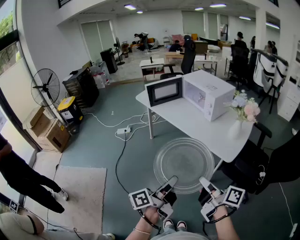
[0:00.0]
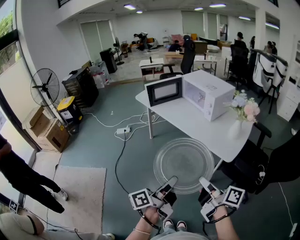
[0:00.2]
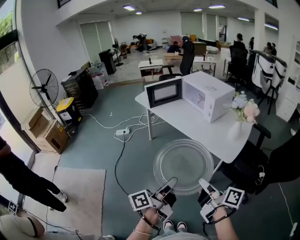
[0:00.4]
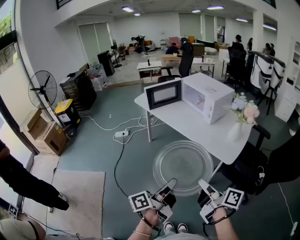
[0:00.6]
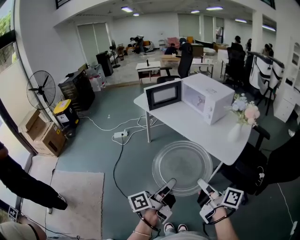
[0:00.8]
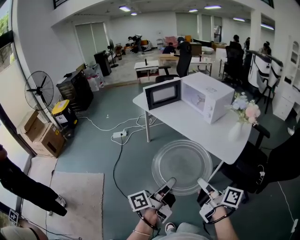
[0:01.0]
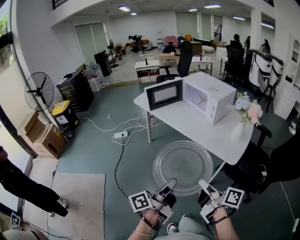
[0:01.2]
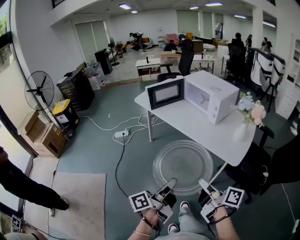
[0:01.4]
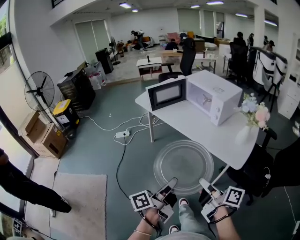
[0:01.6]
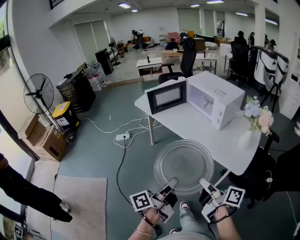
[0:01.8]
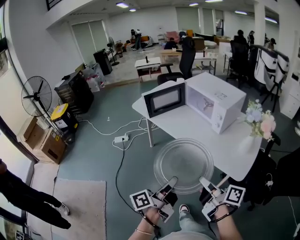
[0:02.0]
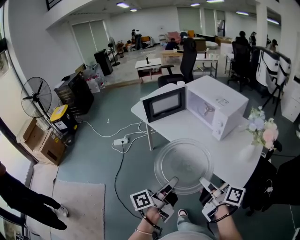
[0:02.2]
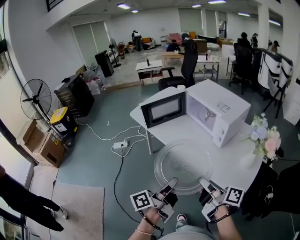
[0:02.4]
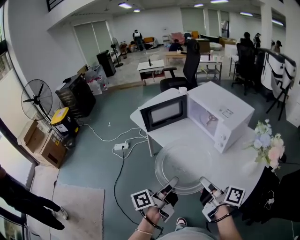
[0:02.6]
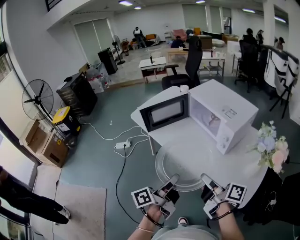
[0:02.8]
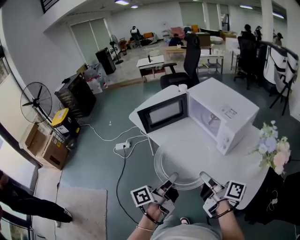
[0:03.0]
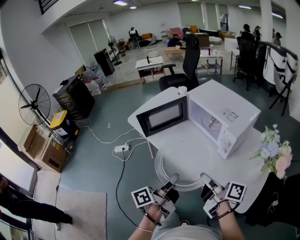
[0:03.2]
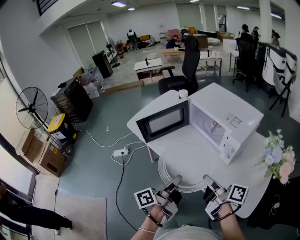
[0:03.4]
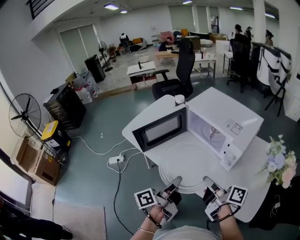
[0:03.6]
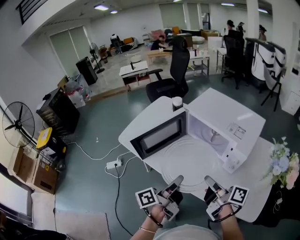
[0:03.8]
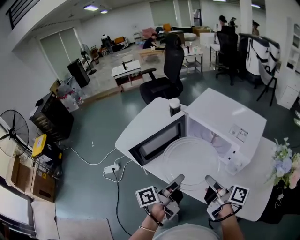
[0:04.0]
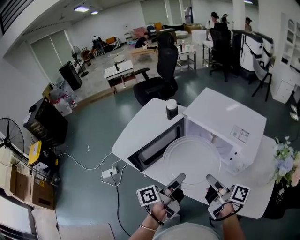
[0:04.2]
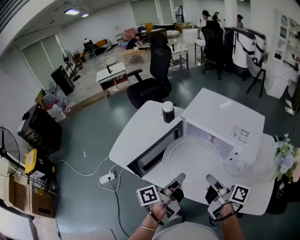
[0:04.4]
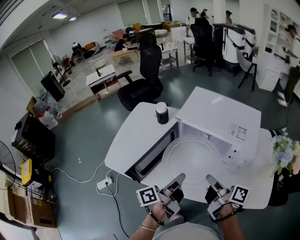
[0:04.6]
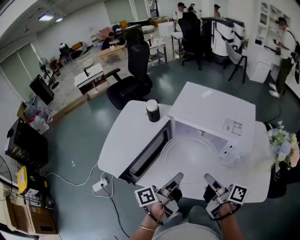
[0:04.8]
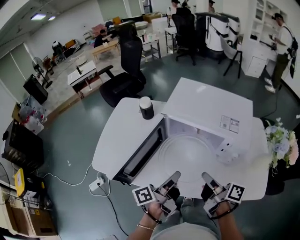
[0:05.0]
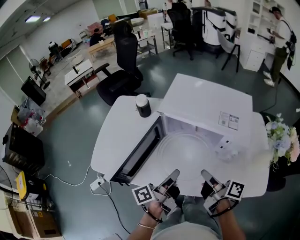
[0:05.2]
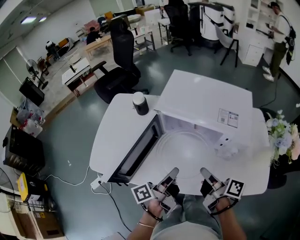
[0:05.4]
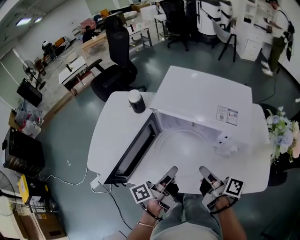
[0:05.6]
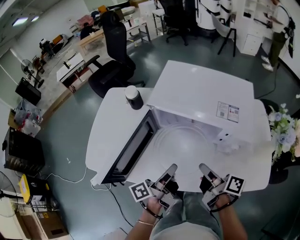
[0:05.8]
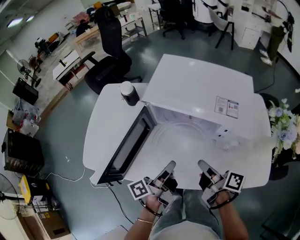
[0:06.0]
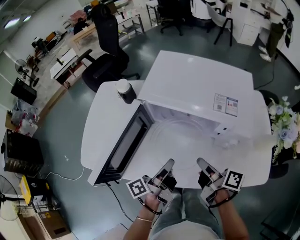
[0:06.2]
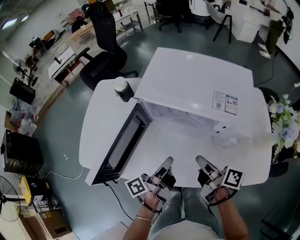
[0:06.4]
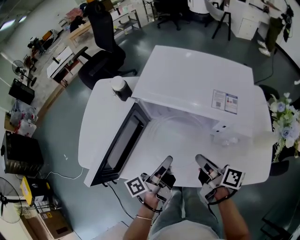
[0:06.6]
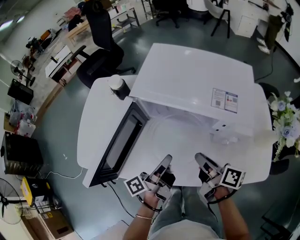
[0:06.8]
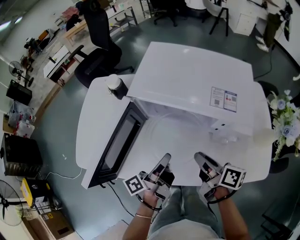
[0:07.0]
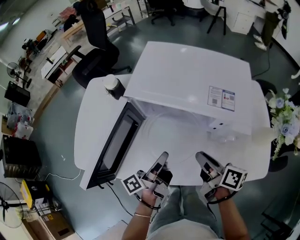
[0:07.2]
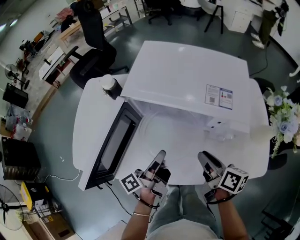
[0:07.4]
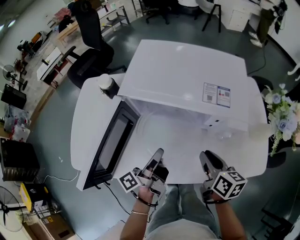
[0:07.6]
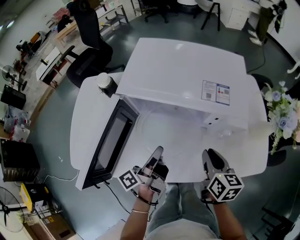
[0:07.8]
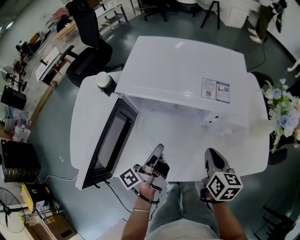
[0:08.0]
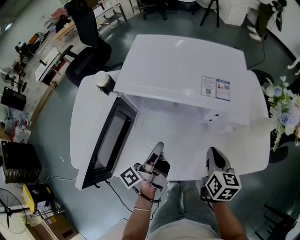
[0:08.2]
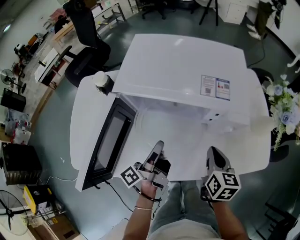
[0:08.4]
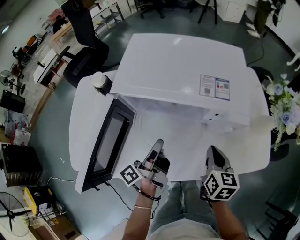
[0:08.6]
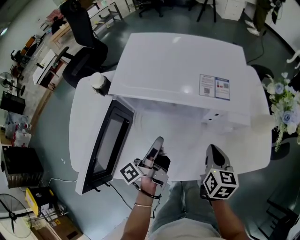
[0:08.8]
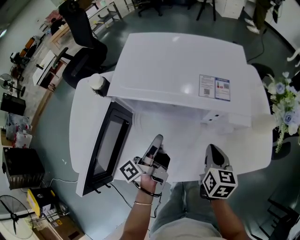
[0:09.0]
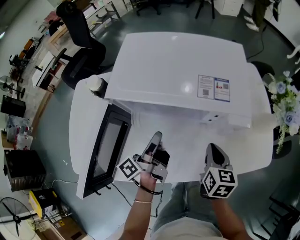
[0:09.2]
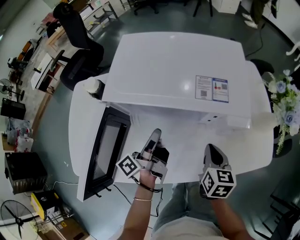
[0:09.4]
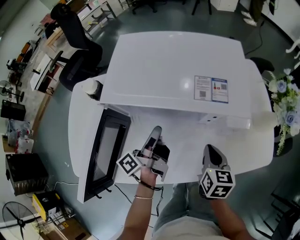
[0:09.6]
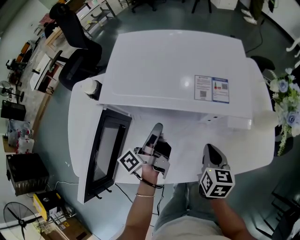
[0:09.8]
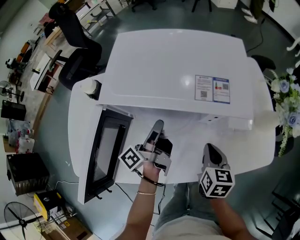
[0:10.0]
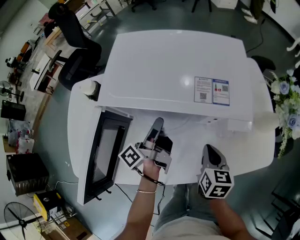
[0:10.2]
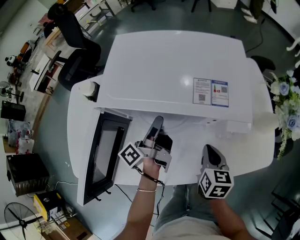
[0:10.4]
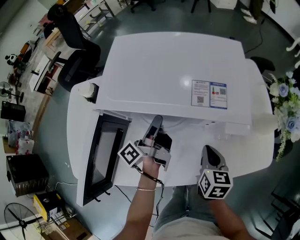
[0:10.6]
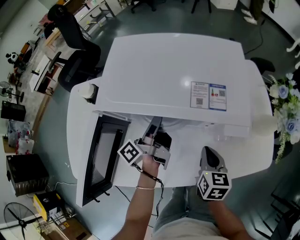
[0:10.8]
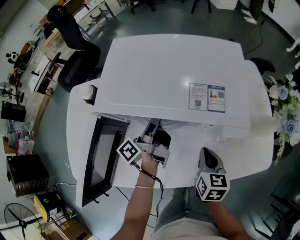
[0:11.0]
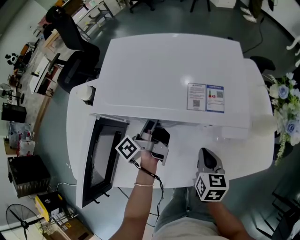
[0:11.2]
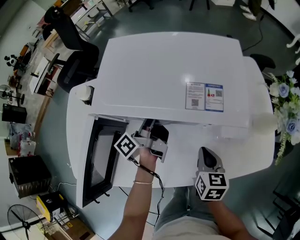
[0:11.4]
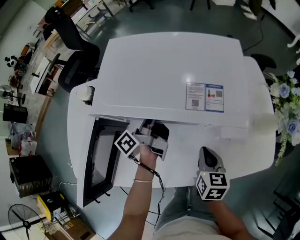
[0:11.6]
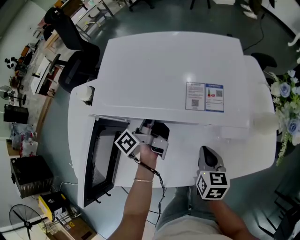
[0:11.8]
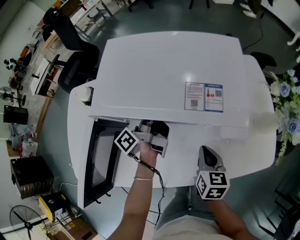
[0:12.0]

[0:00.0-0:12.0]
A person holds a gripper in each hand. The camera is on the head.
0:00.0 to 0:01.6: The right gripper changes place by some 10 cm.
0:01.6 to 0:03.0: The right gripper moves some 30 cm.
0:03.0 to 0:04.4: The right gripper changes place by some 25 cm, and rotates some 20 degrees.
0:04.4 to 0:06.0: The right gripper is displaced downward by about 5 cm.
0:06.0 to 0:07.6: The right gripper changes place by approximately 5 cm, and rotates about 30 degrees.
0:07.6 to 0:09.0: The right gripper swivels some 20 degrees, and closes its fingers.

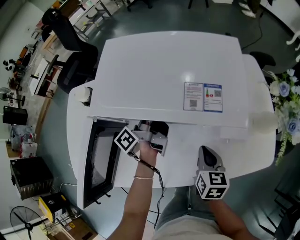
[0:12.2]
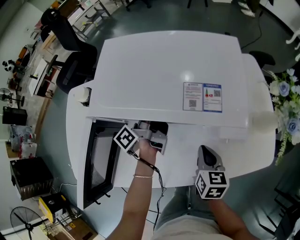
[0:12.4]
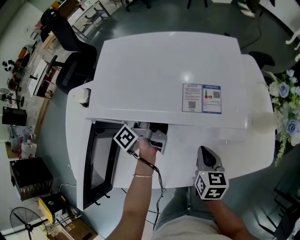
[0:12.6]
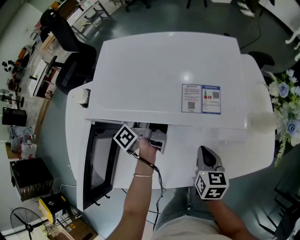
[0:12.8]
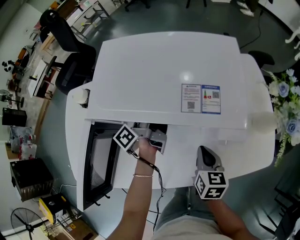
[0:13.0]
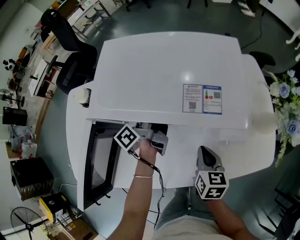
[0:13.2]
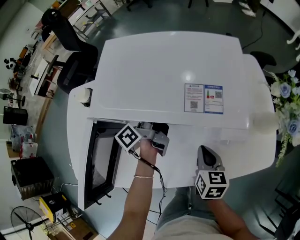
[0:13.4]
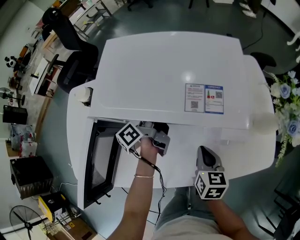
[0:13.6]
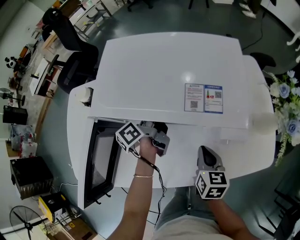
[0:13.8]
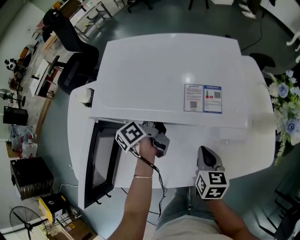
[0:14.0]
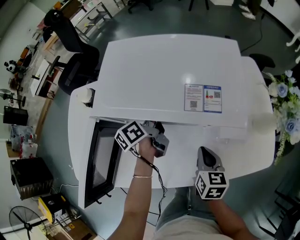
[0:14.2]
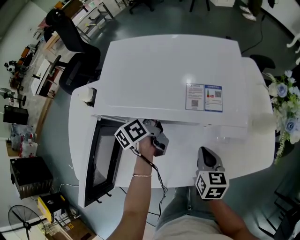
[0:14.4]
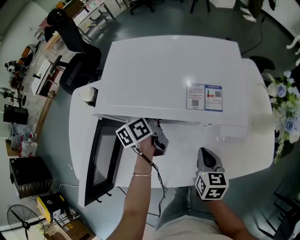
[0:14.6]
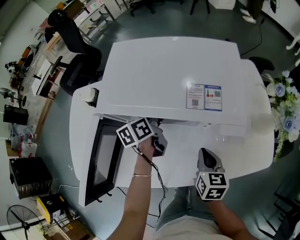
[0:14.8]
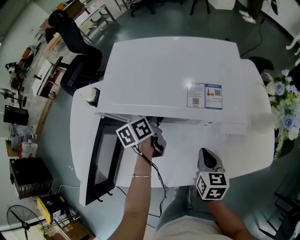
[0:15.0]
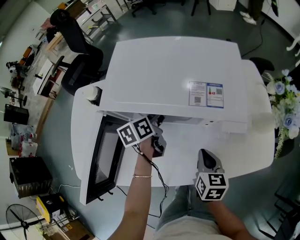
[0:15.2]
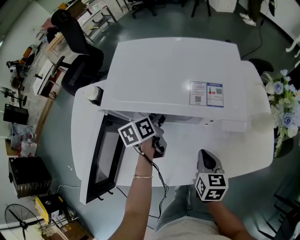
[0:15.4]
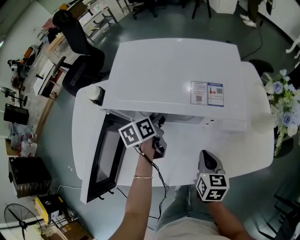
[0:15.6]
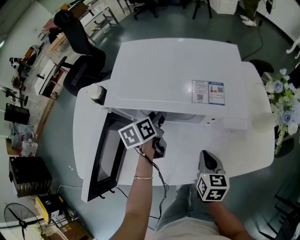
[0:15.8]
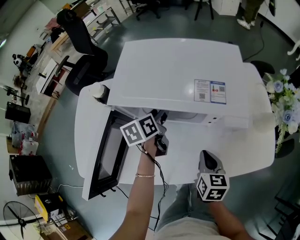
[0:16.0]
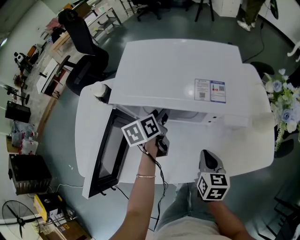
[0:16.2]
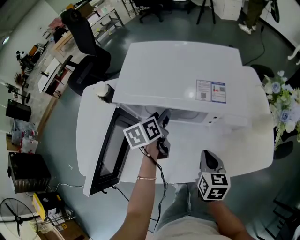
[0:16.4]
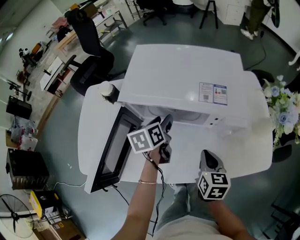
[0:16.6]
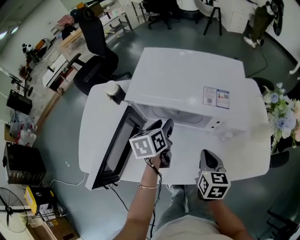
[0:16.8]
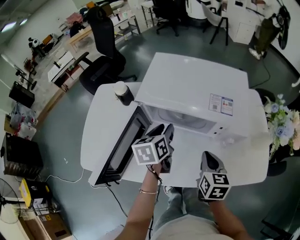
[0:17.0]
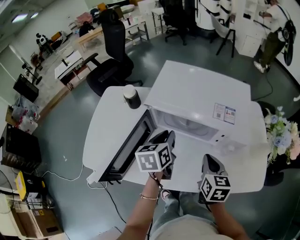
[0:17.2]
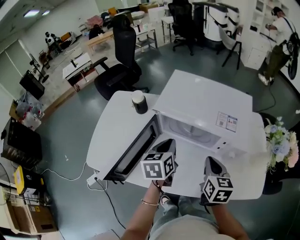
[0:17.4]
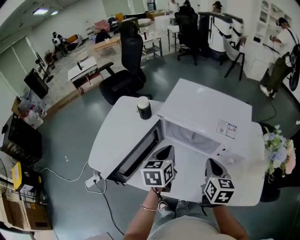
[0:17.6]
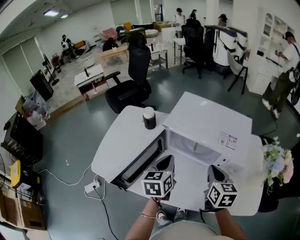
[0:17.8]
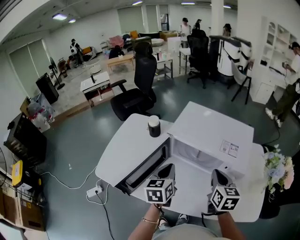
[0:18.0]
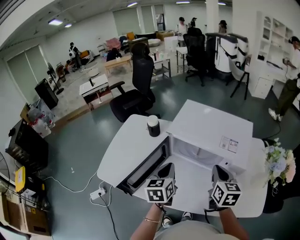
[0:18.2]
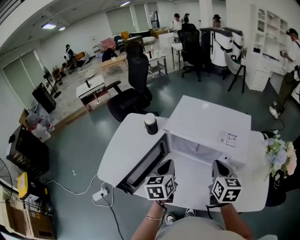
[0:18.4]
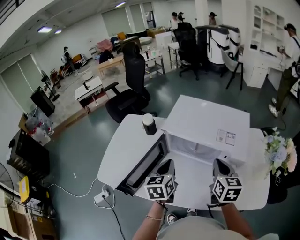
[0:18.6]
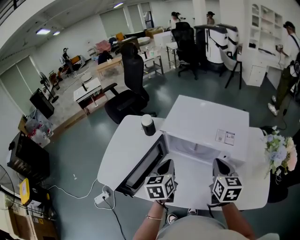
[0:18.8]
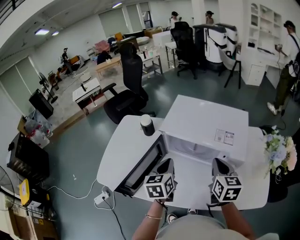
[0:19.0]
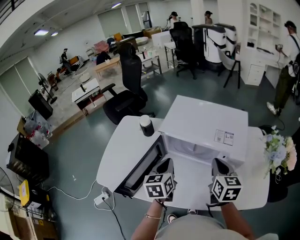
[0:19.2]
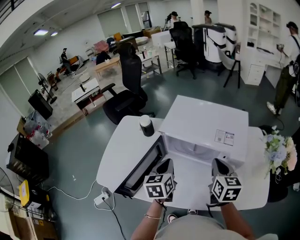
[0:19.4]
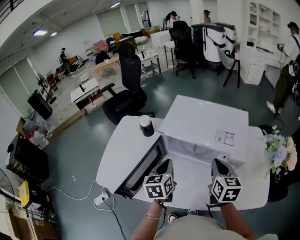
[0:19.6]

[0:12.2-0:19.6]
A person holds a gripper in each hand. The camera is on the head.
0:16.6 to 0:18.2: The right gripper travels upward by about 15 cm, and changes its angle by about 20 degrees.

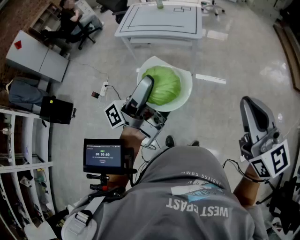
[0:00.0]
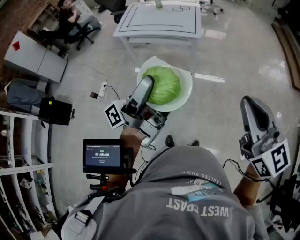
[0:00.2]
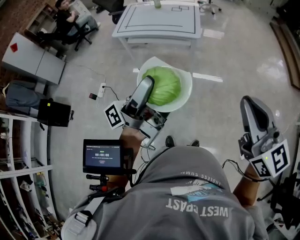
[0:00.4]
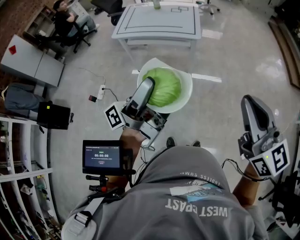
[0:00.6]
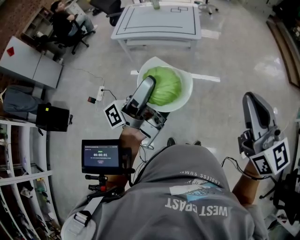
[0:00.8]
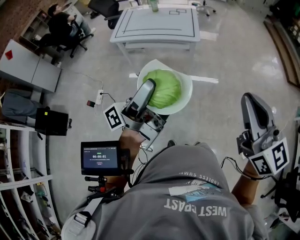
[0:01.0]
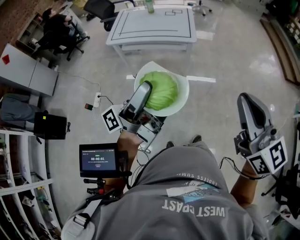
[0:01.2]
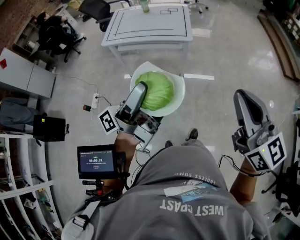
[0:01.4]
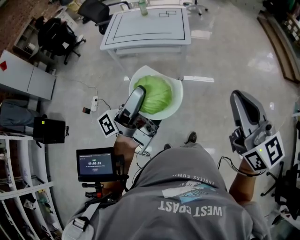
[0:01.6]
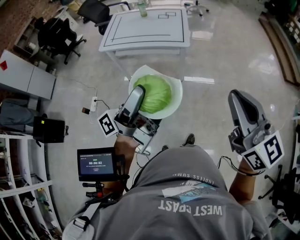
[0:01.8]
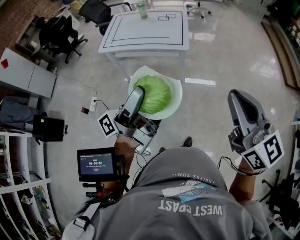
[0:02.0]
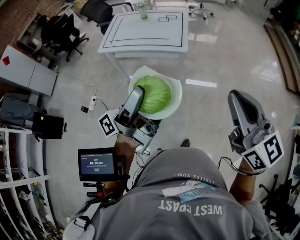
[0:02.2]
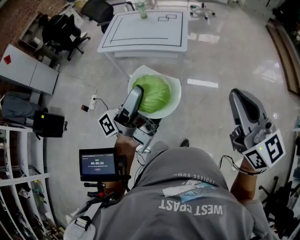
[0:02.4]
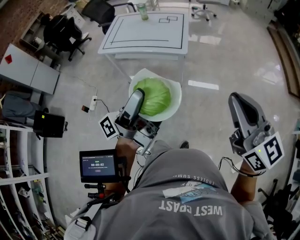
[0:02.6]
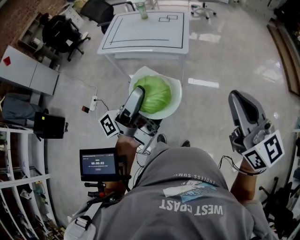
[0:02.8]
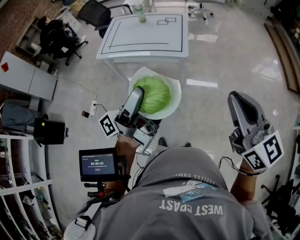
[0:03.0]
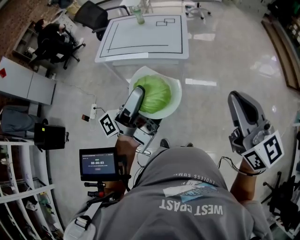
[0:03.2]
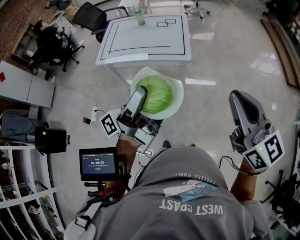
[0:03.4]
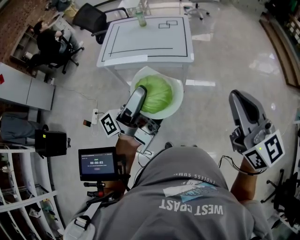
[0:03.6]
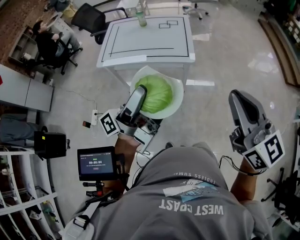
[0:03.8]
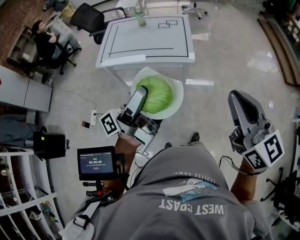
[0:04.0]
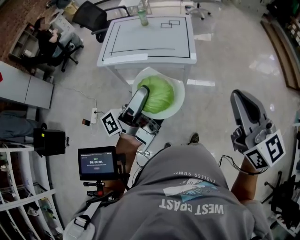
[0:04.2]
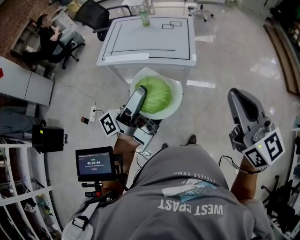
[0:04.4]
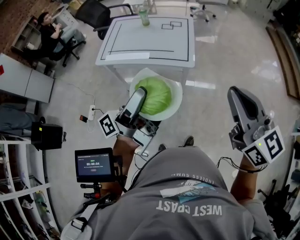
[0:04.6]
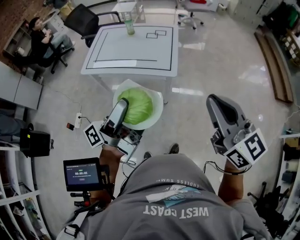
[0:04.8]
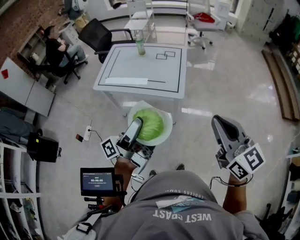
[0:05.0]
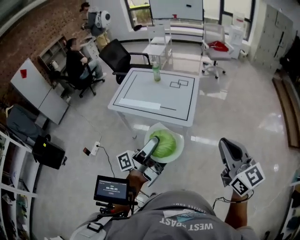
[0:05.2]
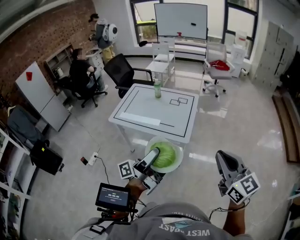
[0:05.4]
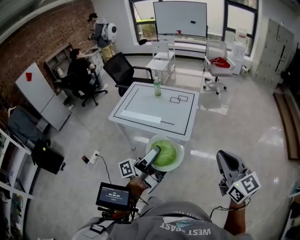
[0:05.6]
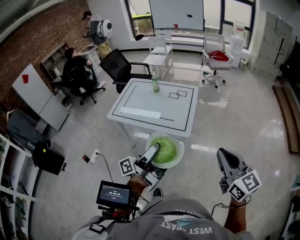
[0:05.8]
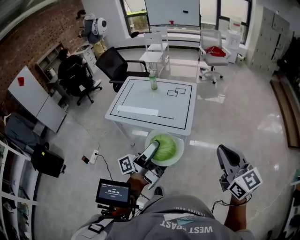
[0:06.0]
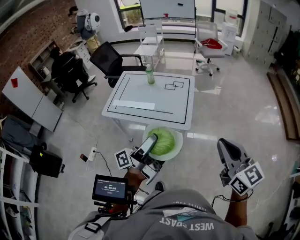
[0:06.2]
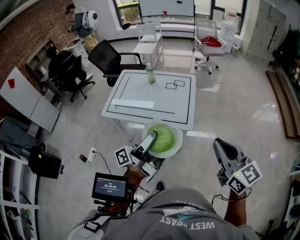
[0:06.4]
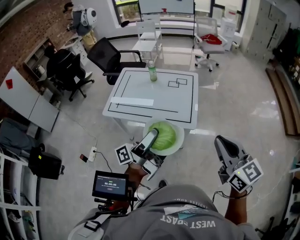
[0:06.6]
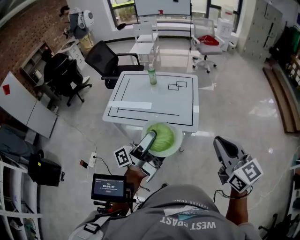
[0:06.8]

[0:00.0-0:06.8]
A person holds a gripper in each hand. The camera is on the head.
0:00.0 to 0:01.4: The right gripper shifts by about 5 cm.
0:01.4 to 0:02.8: The right gripper changes place by about 15 cm.
0:02.8 to 0:04.0: The right gripper ends up roughly 15 cm from where it was.
0:04.0 to 0:05.4: The right gripper ends up some 15 cm from where it was.
0:05.4 to 0:06.8: The right gripper moves some 15 cm.
